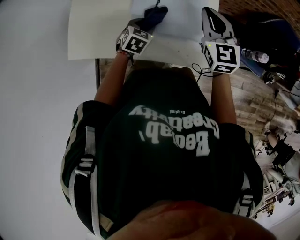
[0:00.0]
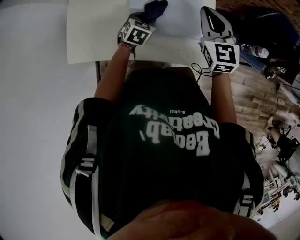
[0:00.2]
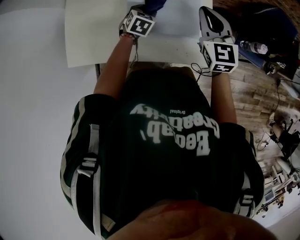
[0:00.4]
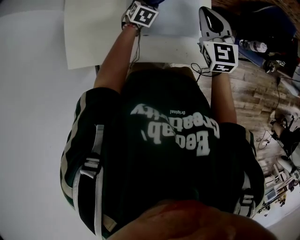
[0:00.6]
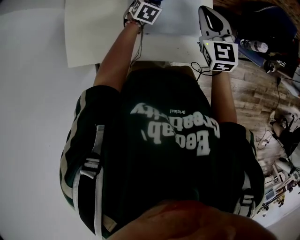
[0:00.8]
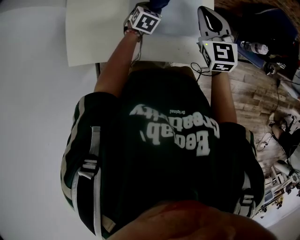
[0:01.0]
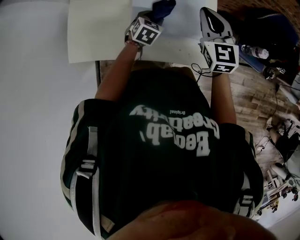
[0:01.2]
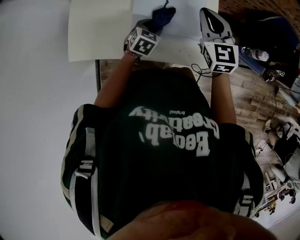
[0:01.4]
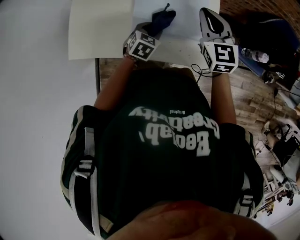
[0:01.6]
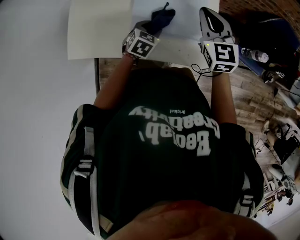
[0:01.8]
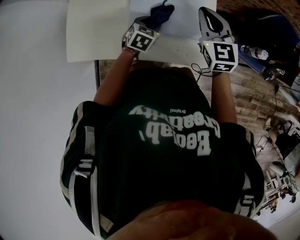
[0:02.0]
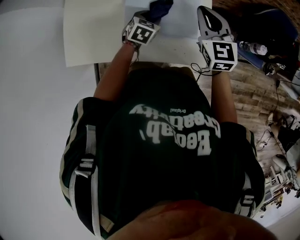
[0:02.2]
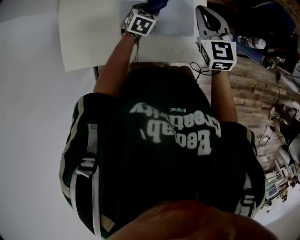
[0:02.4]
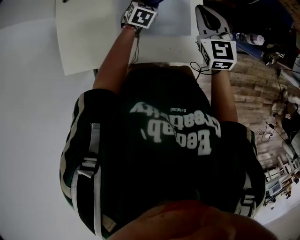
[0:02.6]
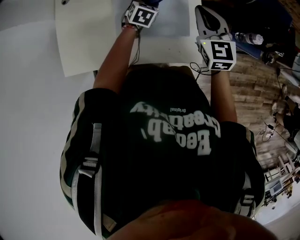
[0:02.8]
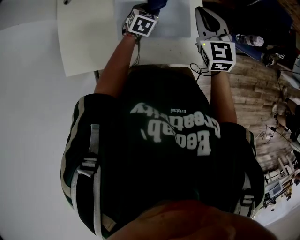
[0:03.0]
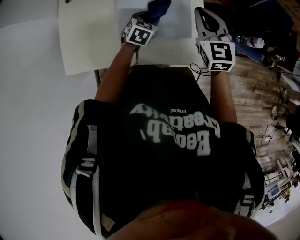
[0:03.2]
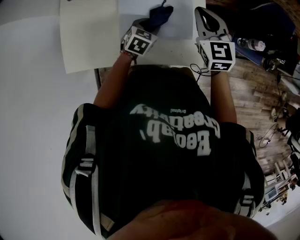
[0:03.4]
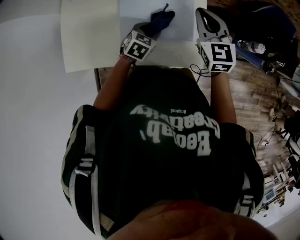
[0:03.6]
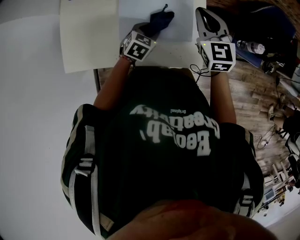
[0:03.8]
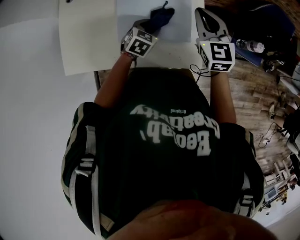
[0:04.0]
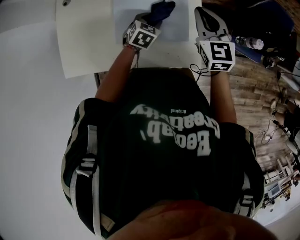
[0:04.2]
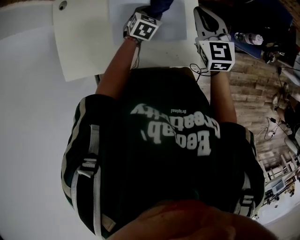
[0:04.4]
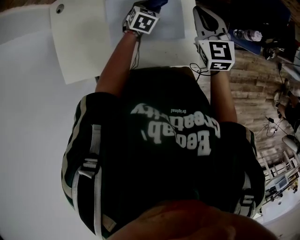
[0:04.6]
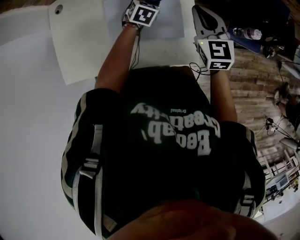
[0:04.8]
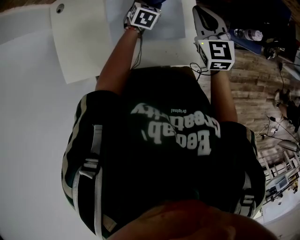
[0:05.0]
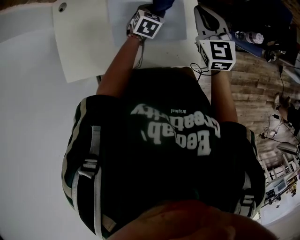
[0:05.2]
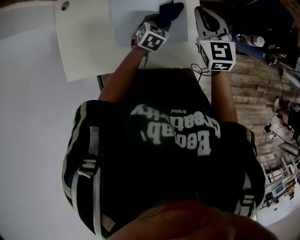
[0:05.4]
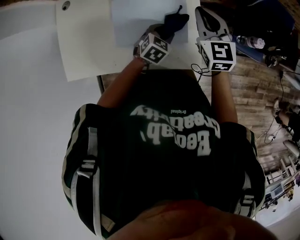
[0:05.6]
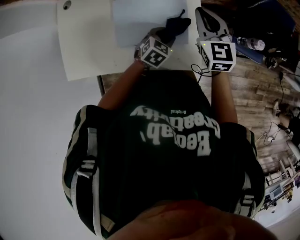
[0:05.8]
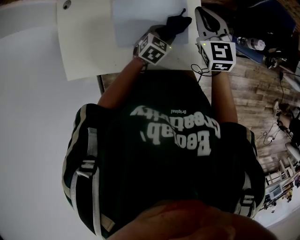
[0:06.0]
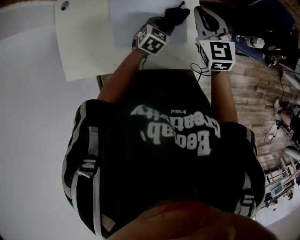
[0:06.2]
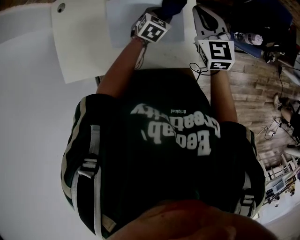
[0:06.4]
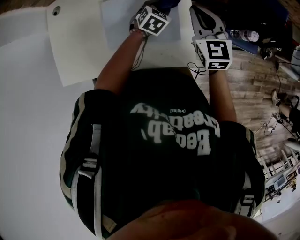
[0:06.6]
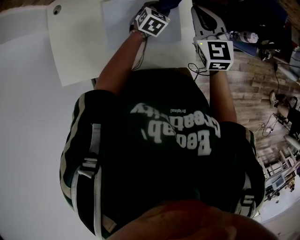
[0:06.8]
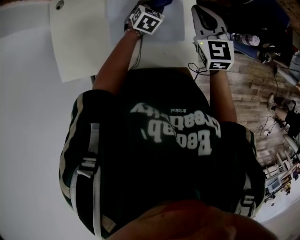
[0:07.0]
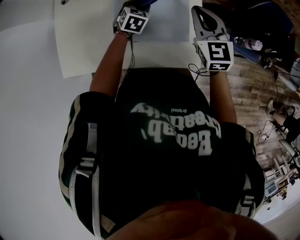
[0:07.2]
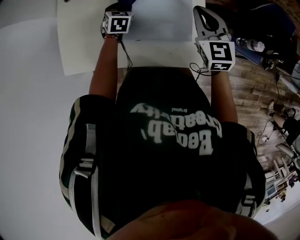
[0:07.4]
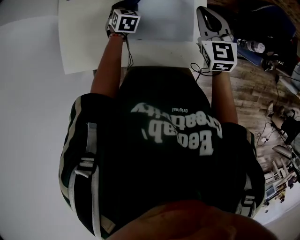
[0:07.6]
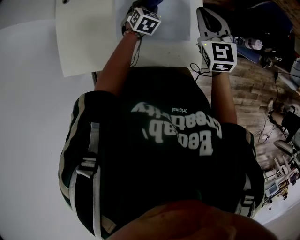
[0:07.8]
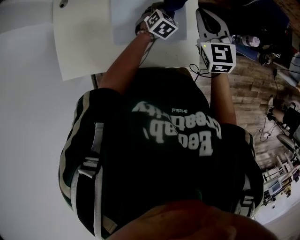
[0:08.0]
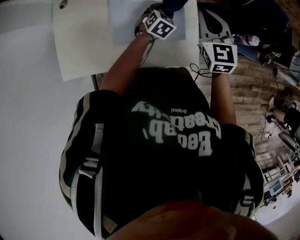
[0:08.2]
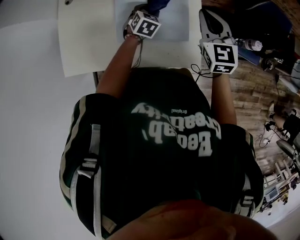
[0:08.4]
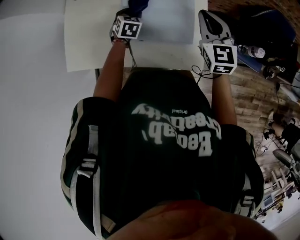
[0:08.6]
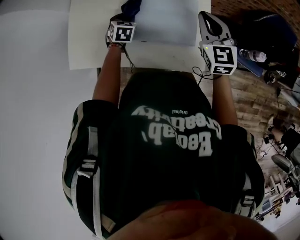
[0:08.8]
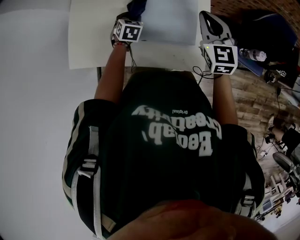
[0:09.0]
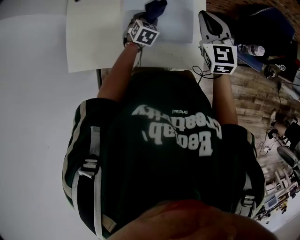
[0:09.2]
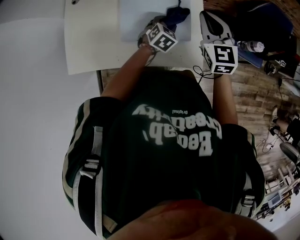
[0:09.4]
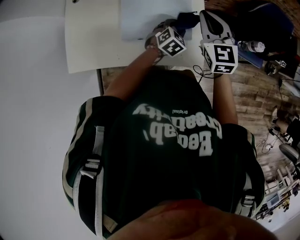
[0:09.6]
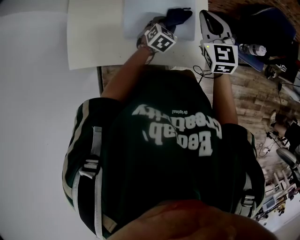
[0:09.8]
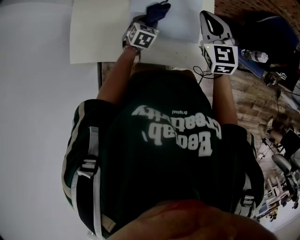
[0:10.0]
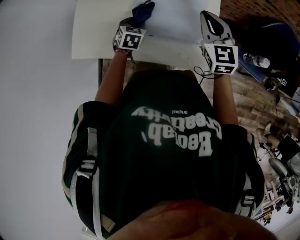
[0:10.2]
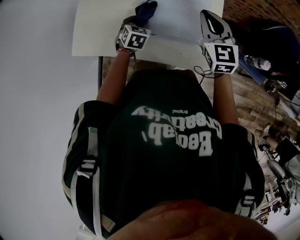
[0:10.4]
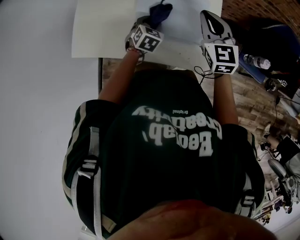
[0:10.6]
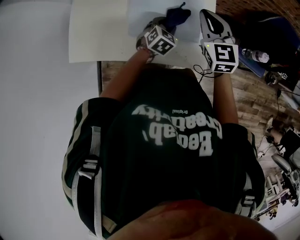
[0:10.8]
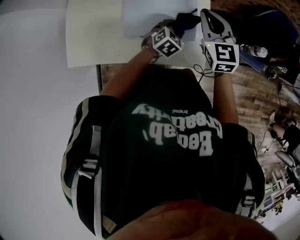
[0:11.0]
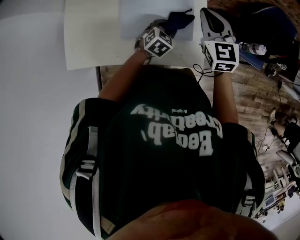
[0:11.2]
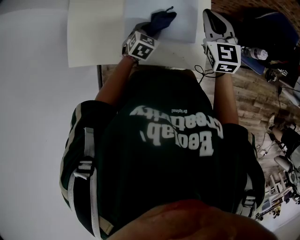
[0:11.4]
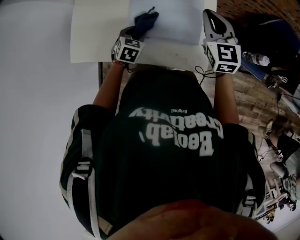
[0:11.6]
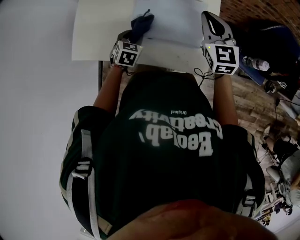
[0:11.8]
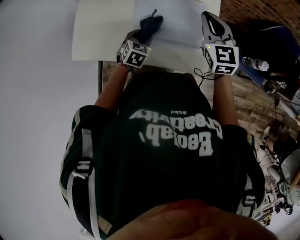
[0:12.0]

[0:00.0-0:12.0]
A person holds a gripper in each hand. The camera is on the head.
0:00.0 to 0:01.6: The left gripper moves about 10 cm forward and comes back.
0:01.6 to 0:03.0: The left gripper is displaced forward by approximately 10 cm. Meanwhile the right gripper shifts approximately 5 cm to the right.
0:03.0 to 0:04.4: The left gripper goes backward and returns, about 10 cm each way.
0:04.4 to 0:06.0: The left gripper heads backward and to the right, covering some 10 cm.
0:06.0 to 0:07.6: The left gripper goes roughly 20 cm to the left and forward, and turns by some 30 degrees.
0:07.6 to 0:09.0: The left gripper goes about 5 cm backward, and reaches roughly 20 cm to the right, then returns.
0:09.0 to 0:10.4: The left gripper is displaced backward by about 5 cm, and travels to the right and back again, about 25 cm each way.
0:10.4 to 0:12.0: The left gripper goes left and right, some 20 cm each way, reversing 2 times.

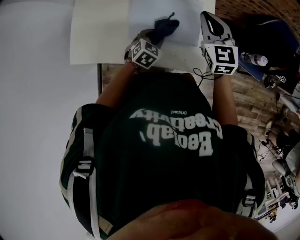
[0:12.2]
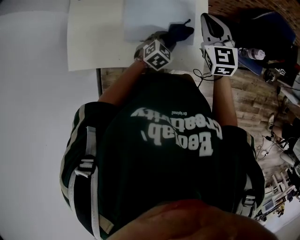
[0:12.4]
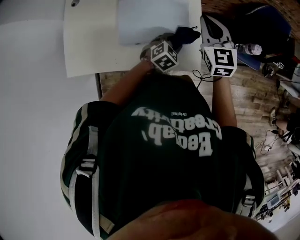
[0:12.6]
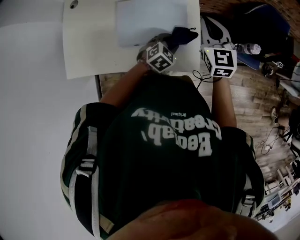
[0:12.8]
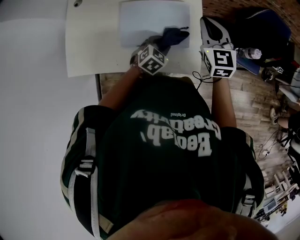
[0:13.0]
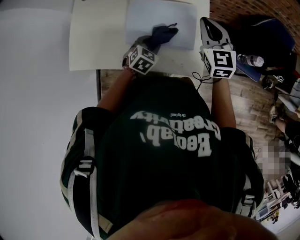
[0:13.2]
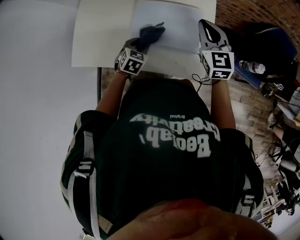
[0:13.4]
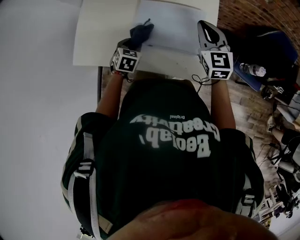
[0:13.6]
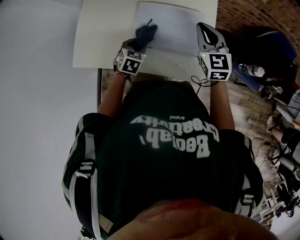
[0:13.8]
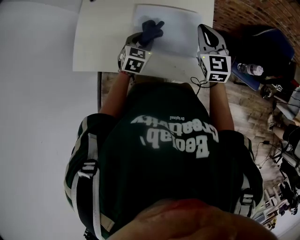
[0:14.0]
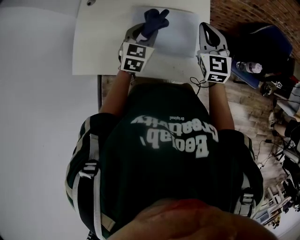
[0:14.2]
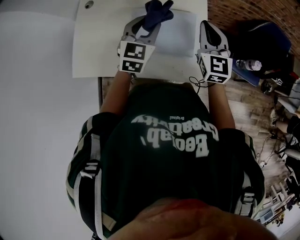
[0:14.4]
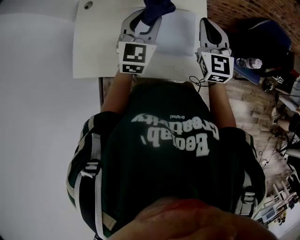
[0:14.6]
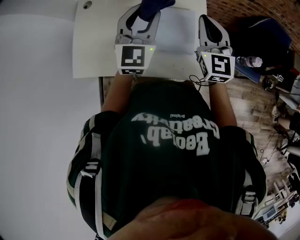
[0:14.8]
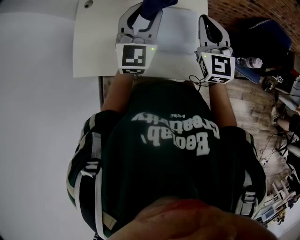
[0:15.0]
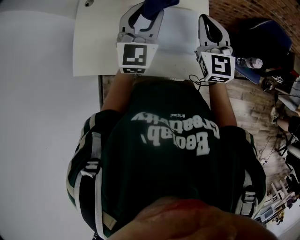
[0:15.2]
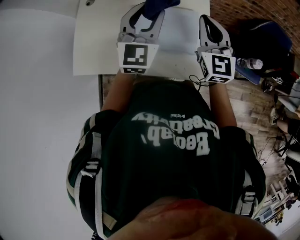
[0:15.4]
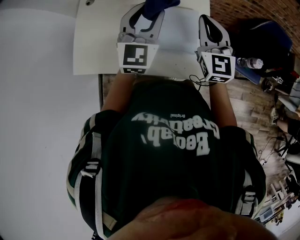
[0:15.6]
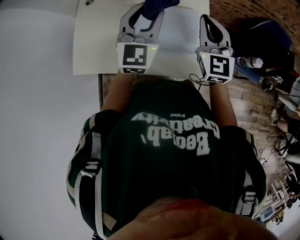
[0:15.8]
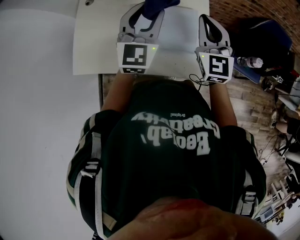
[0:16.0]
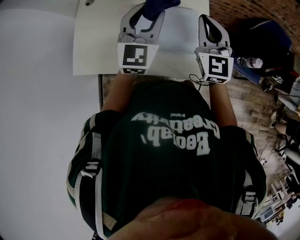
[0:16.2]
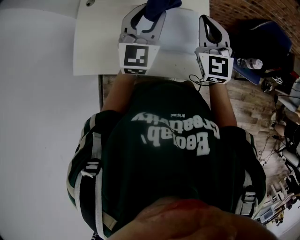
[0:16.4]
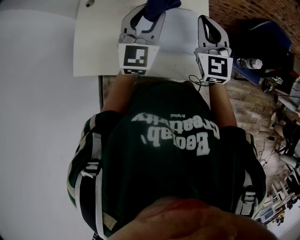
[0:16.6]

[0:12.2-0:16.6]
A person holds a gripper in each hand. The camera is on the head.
0:12.2 to 0:13.6: The left gripper changes place by approximately 15 cm, and turns by some 20 degrees.
0:13.6 to 0:15.2: The left gripper goes roughly 30 cm upward and to the right, and tips its fingers upward by about 50 degrees, while the right gripper is displaced upward by roughly 10 cm.
0:15.2 to 0:16.6: There are only small adjustments of the grippers.

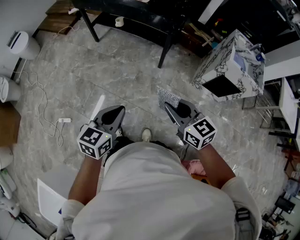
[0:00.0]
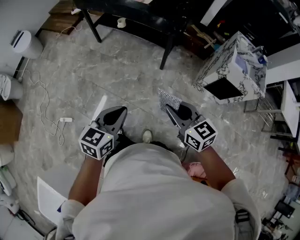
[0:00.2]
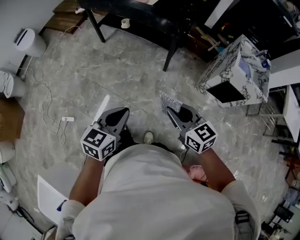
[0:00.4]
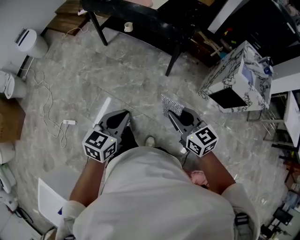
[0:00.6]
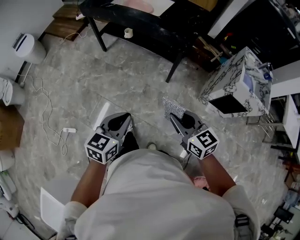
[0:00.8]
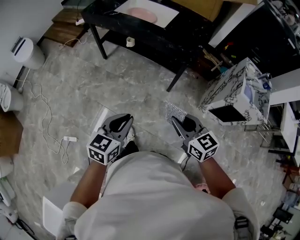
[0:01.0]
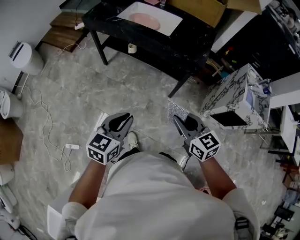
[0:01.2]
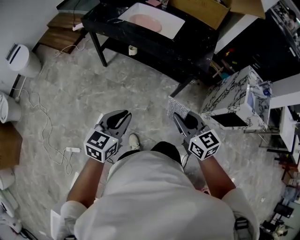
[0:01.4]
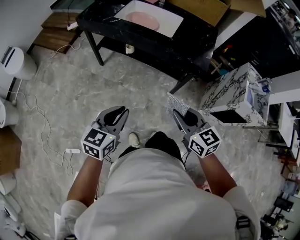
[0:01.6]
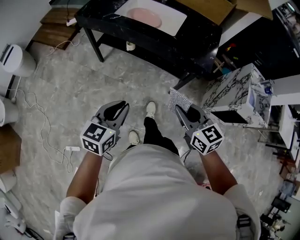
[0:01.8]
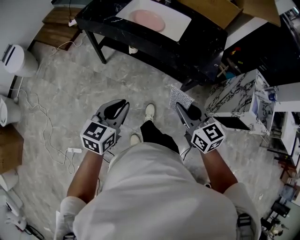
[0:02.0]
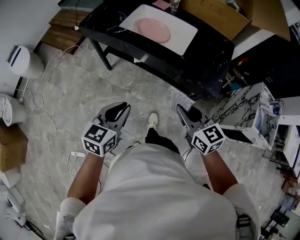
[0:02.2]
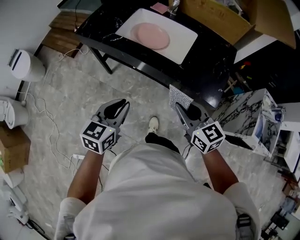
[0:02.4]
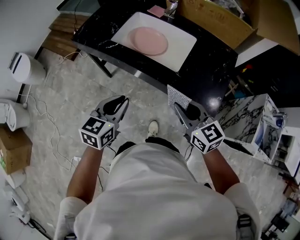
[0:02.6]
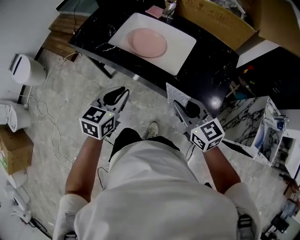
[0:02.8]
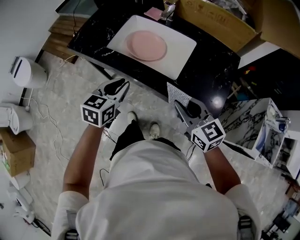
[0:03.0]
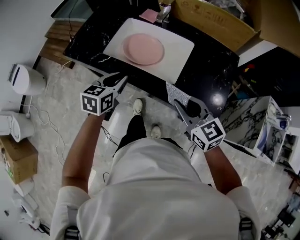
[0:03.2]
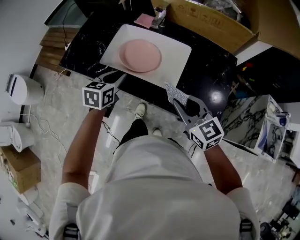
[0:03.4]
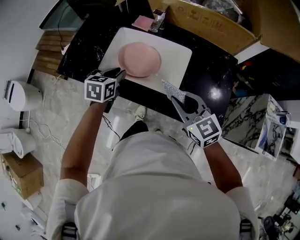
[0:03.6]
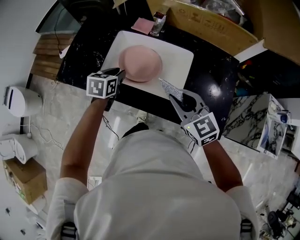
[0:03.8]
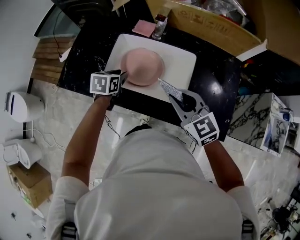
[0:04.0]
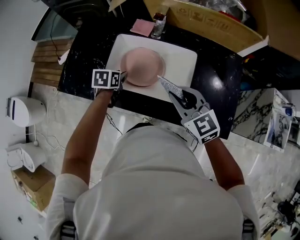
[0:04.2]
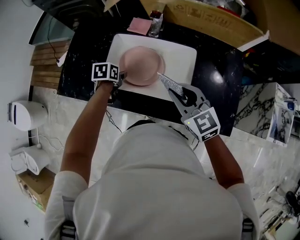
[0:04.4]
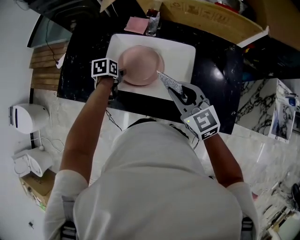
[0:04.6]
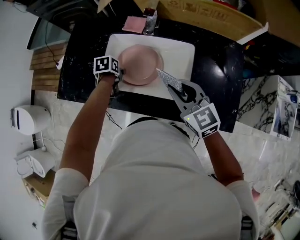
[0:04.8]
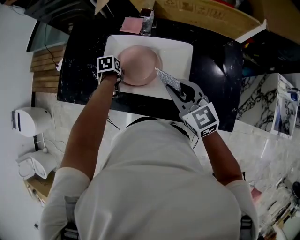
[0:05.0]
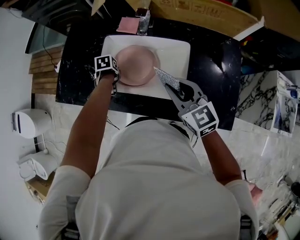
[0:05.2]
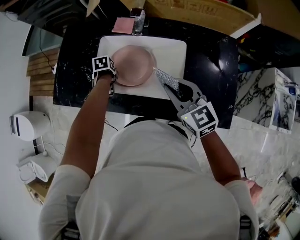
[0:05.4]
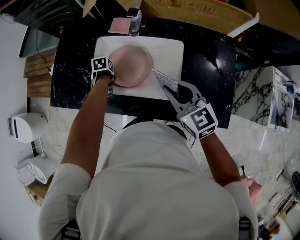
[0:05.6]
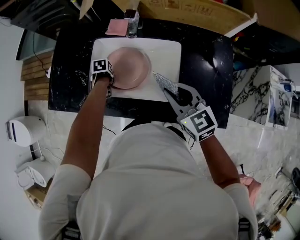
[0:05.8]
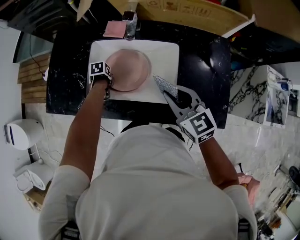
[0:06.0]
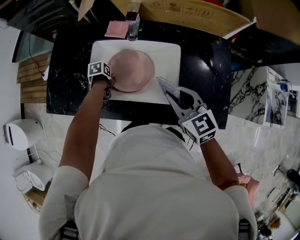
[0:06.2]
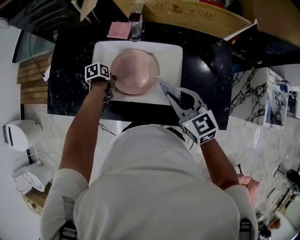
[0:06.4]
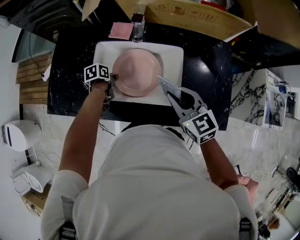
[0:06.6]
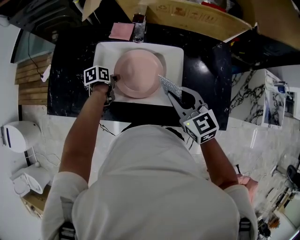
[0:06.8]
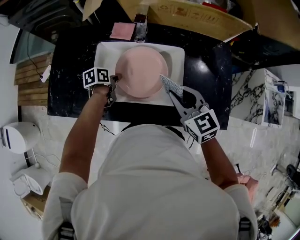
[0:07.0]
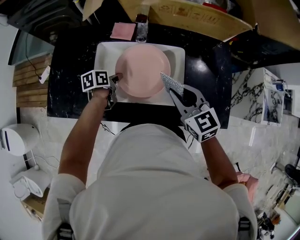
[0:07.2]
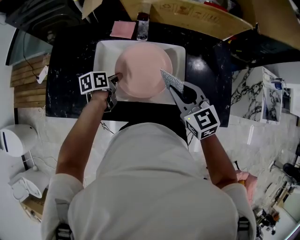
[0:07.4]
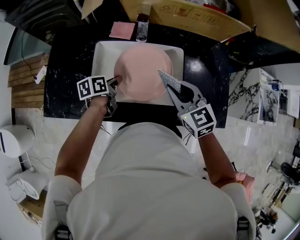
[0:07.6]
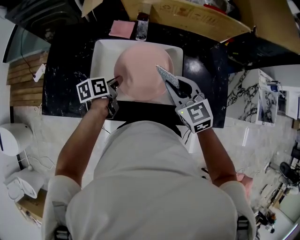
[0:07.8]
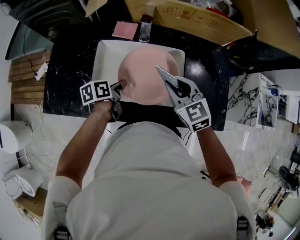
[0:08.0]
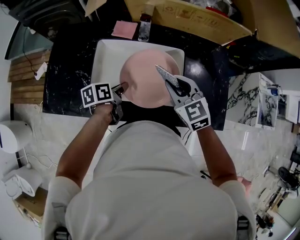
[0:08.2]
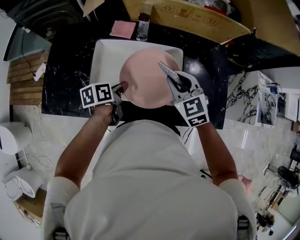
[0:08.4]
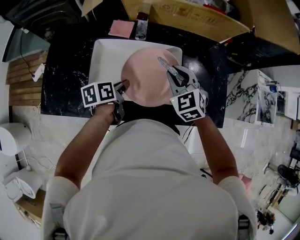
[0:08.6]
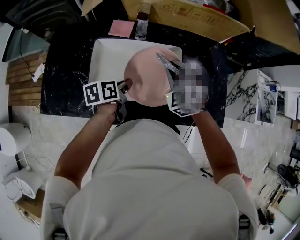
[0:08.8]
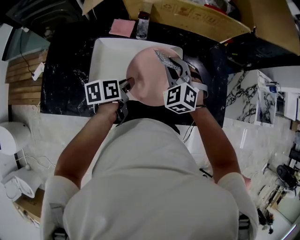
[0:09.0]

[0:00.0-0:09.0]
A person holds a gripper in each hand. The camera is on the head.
0:00.0 to 0:01.6: The two grippers go some 30 cm forward and to the left.
0:01.6 to 0:03.0: The two grippers go about 40 cm forward.
0:03.0 to 0:04.4: The left gripper goes about 35 cm forward and downward, tilts its fingers about 30 degrees downward, and opens its fingers. The right gripper shifts about 20 cm forward.
0:04.4 to 0:06.0: The left gripper goes roughly 10 cm downward, and changes its angle by some 20 degrees.
0:06.0 to 0:07.6: The left gripper moves upward, roughly 10 cm, angles its fingers upward, by about 40 degrees, and closes up.
0:07.6 to 0:09.0: The right gripper goes approximately 10 cm forward, and rotates roughly 50 degrees. Meanwhile the left gripper travels to the right by about 5 cm.
